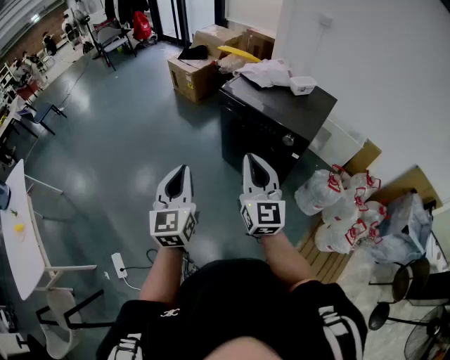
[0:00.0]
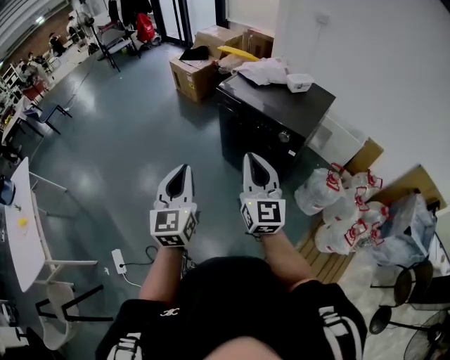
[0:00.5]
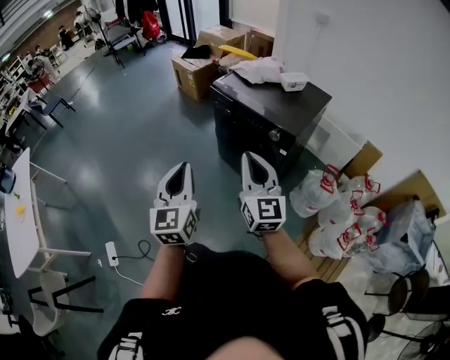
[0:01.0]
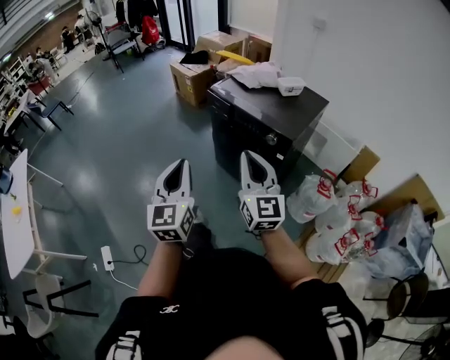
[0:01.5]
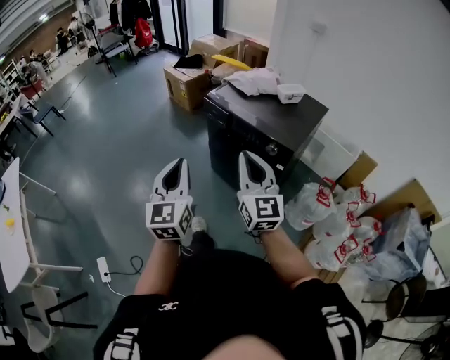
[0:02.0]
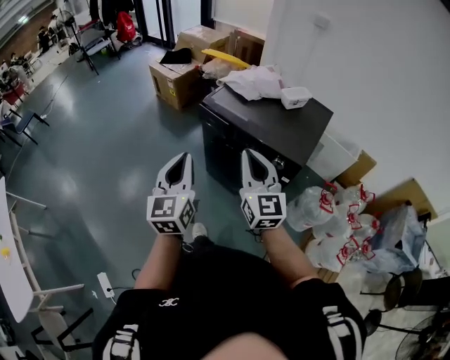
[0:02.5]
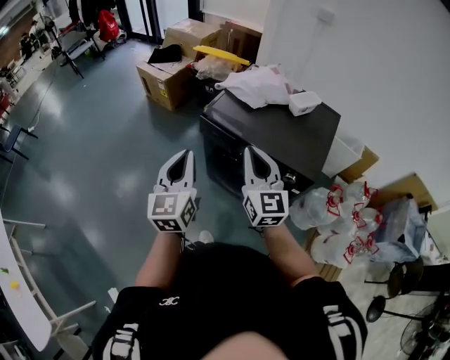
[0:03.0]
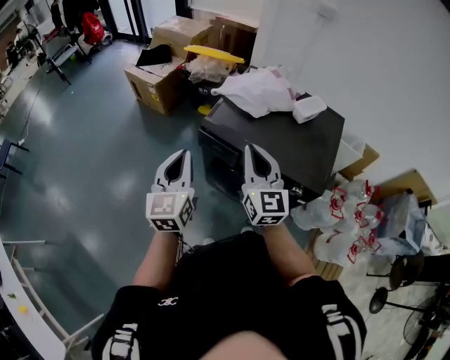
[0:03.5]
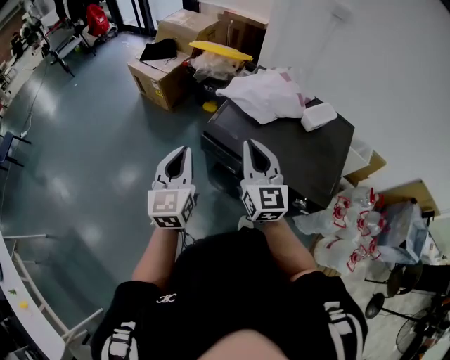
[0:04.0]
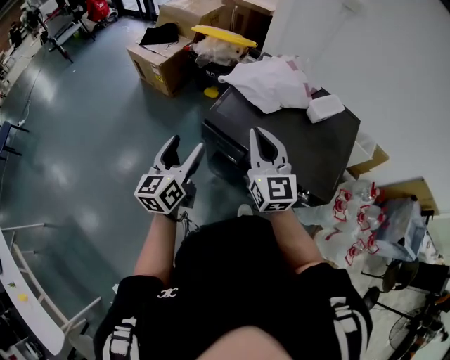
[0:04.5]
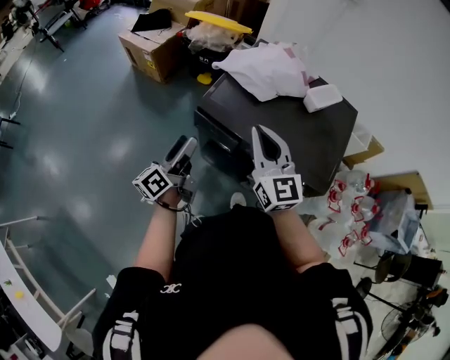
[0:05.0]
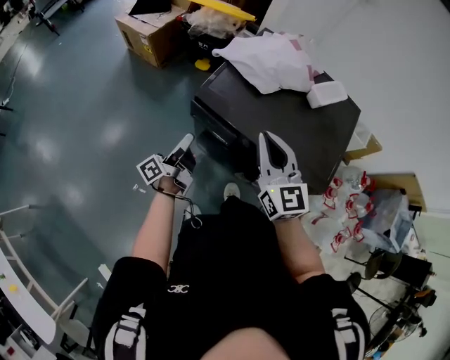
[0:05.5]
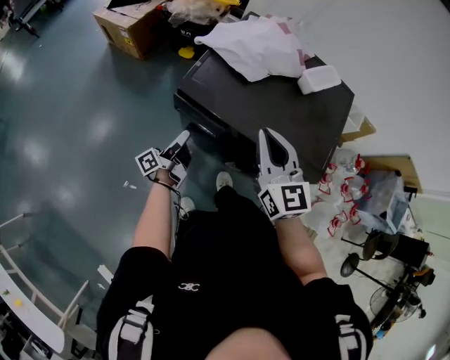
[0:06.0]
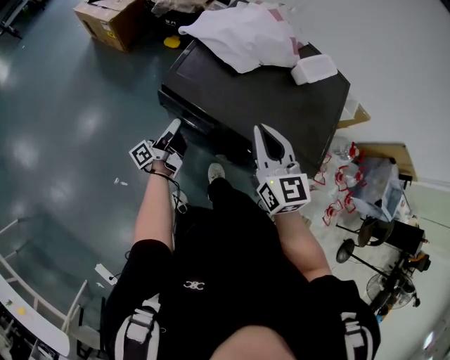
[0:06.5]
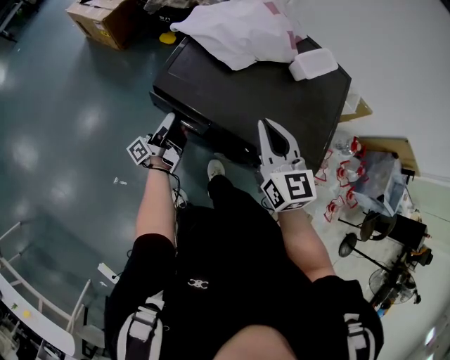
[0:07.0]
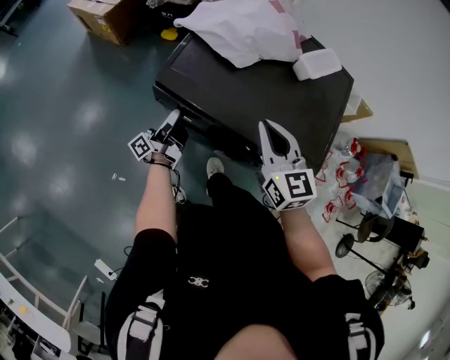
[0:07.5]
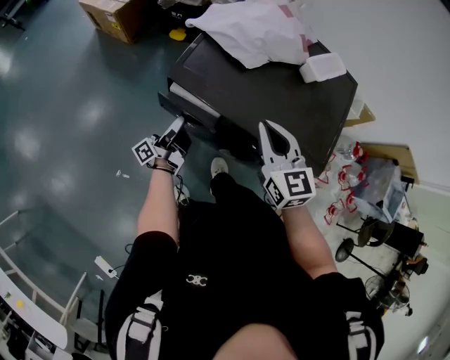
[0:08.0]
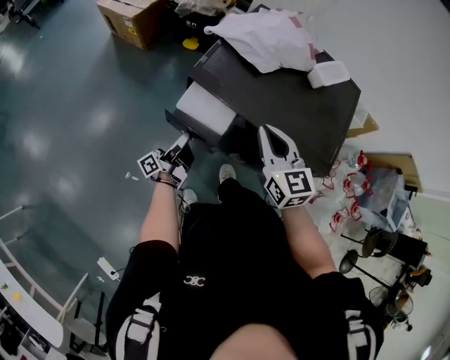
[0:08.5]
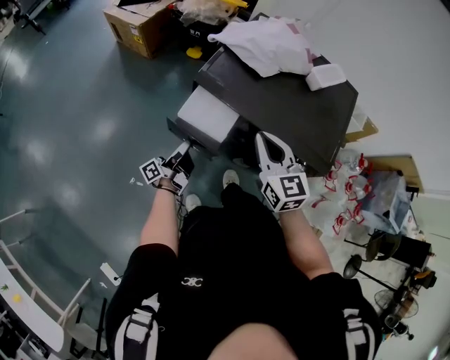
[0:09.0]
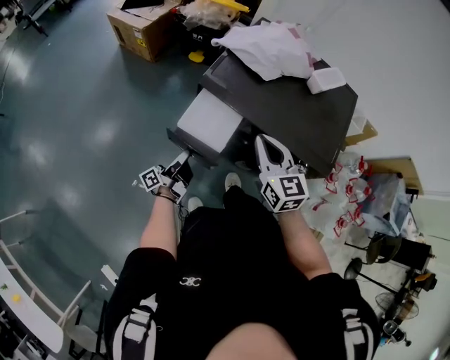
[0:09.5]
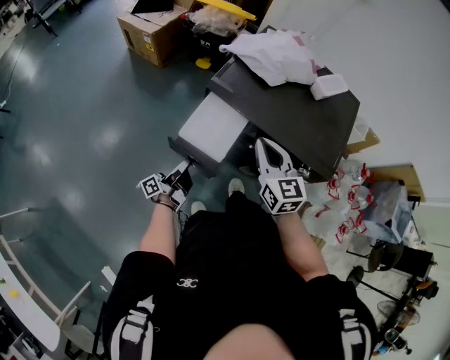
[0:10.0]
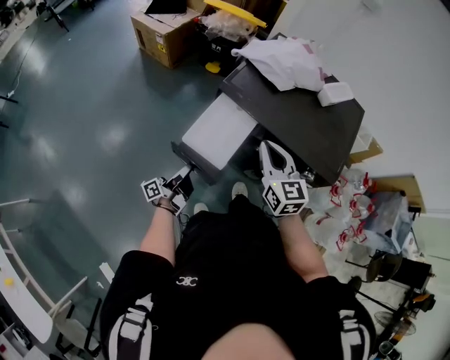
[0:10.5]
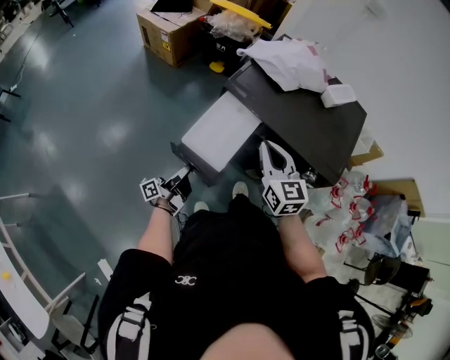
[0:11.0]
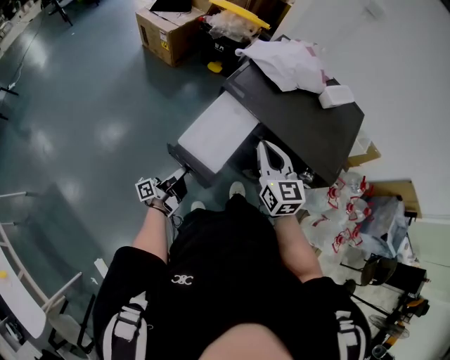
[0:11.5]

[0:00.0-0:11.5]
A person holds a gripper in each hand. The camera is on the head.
0:00.0 to 0:02.0: Both grippers travel together to the right, roughly 10 cm.
0:02.0 to 0:04.0: The two grippers travel together, forward, some 50 cm.
0:04.0 to 0:06.0: The right gripper heads to the right and downward, covering some 10 cm; the left gripper is displaced downward by roughly 30 cm, rotates around the line of its fingers by roughly 80 degrees, counterclockwise from behind, and opens its fingers.
0:06.0 to 0:07.5: The right gripper moves downward, some 5 cm. The left gripper goes approximately 5 cm forward.
0:07.5 to 0:09.5: The right gripper shifts roughly 10 cm backward and to the left, while the left gripper shifts roughly 20 cm backward and to the left.
0:09.5 to 0:11.5: The right gripper changes place by approximately 5 cm, while the left gripper moves backward, some 10 cm.

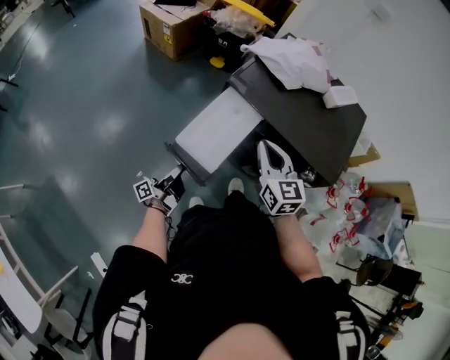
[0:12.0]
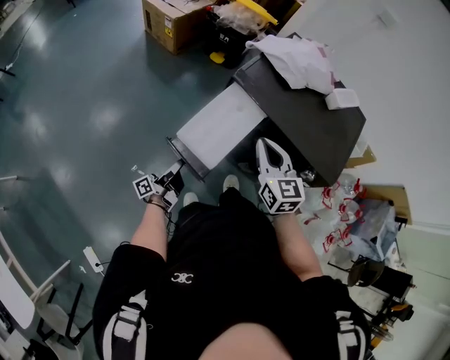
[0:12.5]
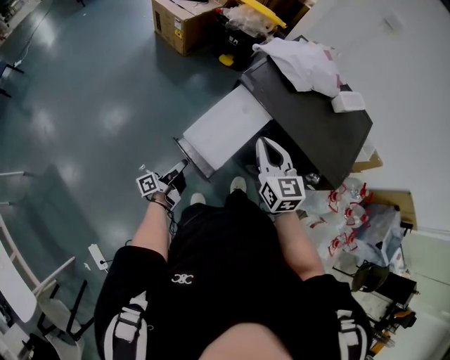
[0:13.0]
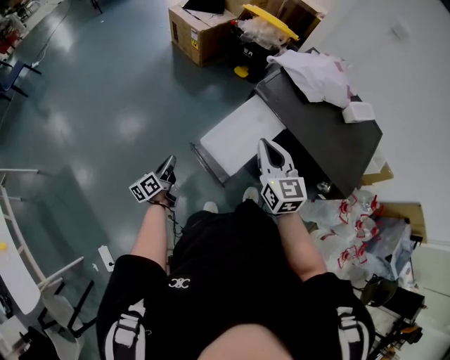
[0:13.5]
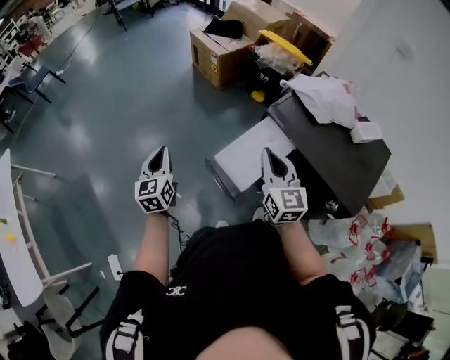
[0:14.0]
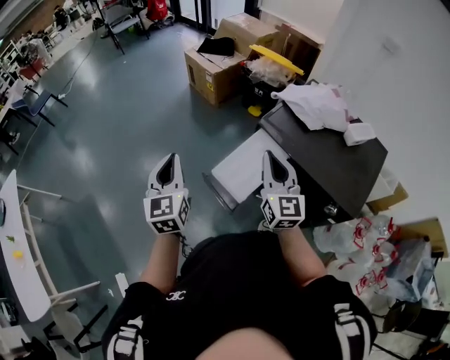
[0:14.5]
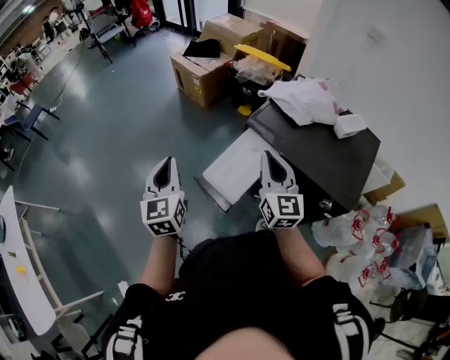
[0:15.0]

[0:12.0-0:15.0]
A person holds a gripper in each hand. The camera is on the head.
0:12.0 to 0:13.5: The left gripper heads to the left, covering roughly 10 cm, swivels some 50 degrees, and closes. The right gripper moves to the left, roughly 10 cm.
0:13.5 to 0:15.0: The right gripper heads upward, covering some 10 cm; the left gripper travels upward by roughly 30 cm, and rolls clockwise, seen from behind, by some 50 degrees.

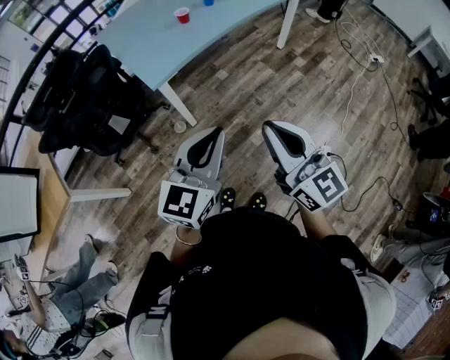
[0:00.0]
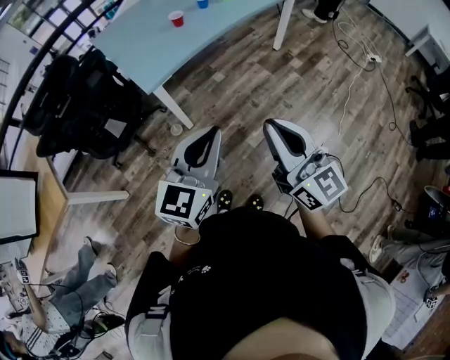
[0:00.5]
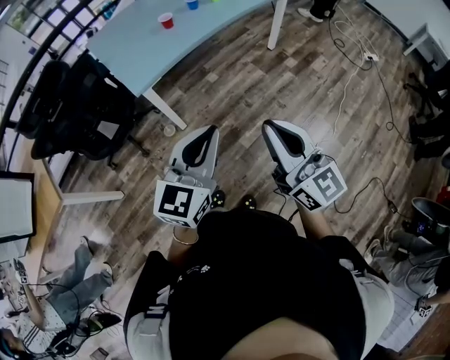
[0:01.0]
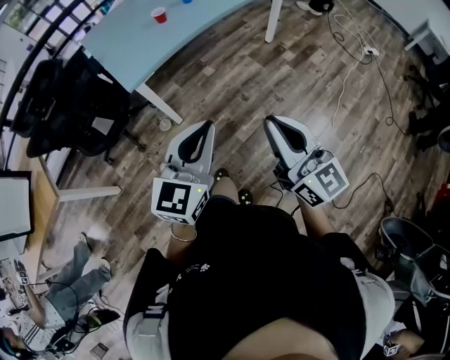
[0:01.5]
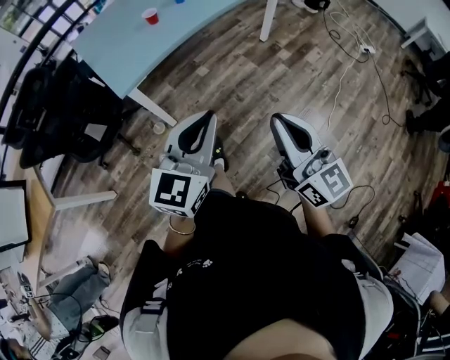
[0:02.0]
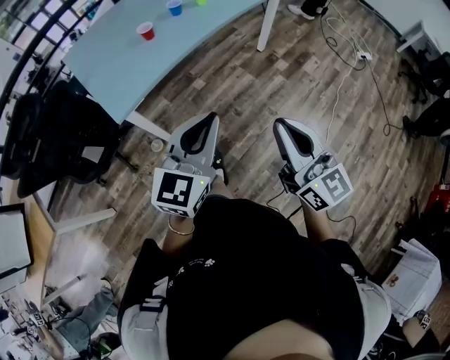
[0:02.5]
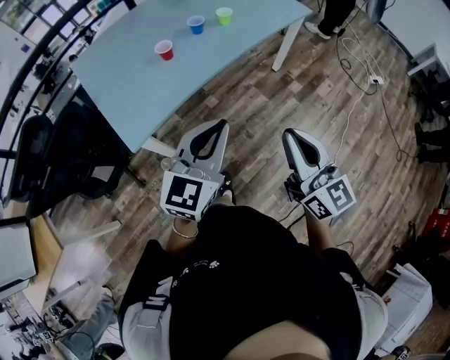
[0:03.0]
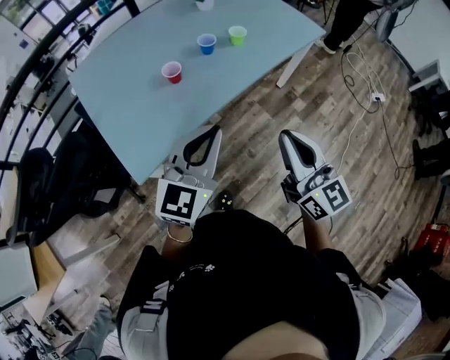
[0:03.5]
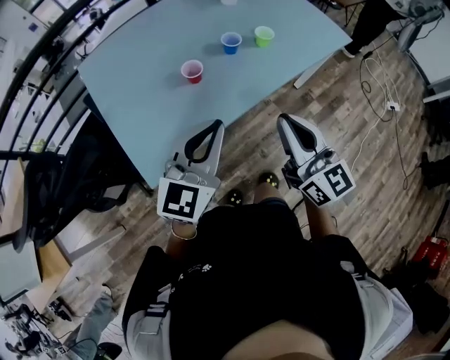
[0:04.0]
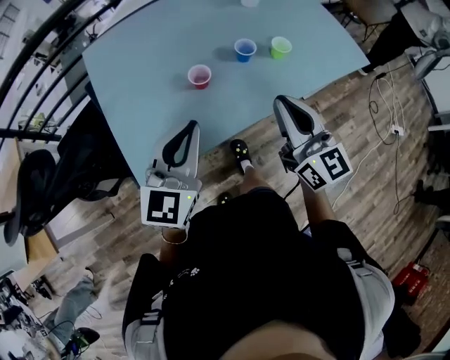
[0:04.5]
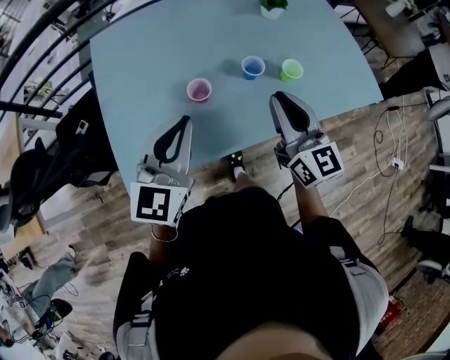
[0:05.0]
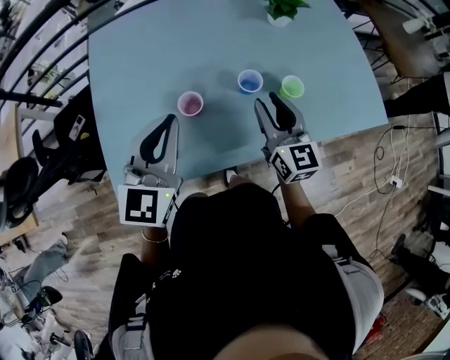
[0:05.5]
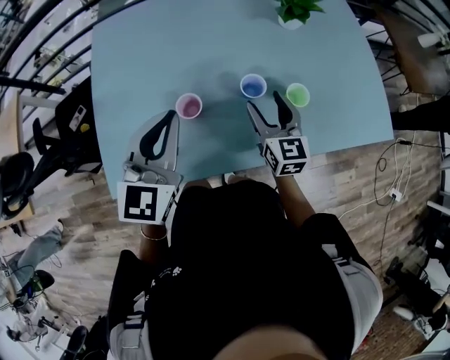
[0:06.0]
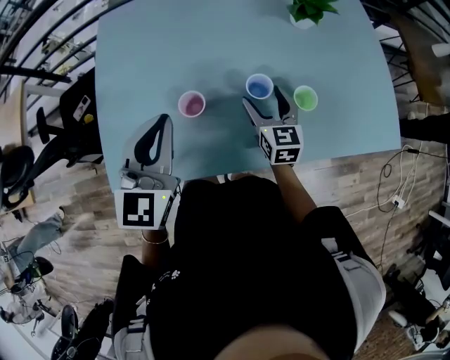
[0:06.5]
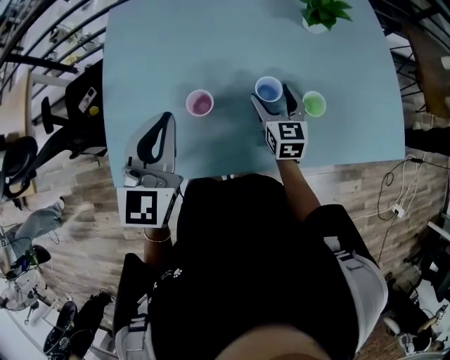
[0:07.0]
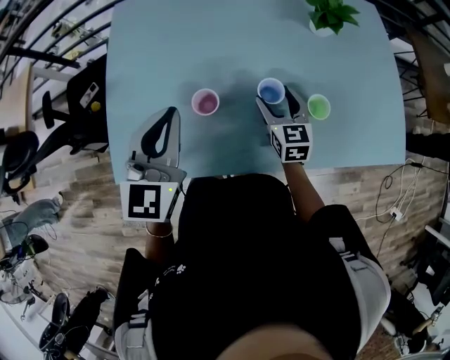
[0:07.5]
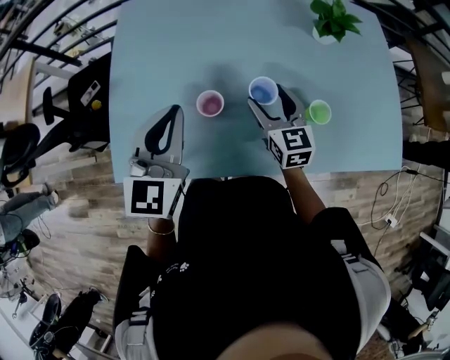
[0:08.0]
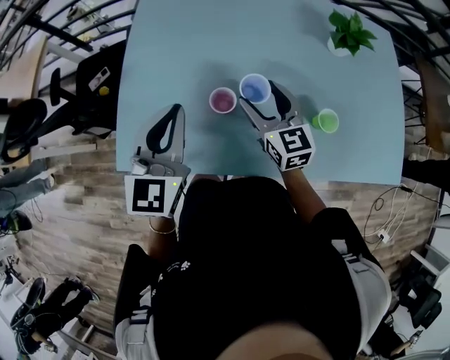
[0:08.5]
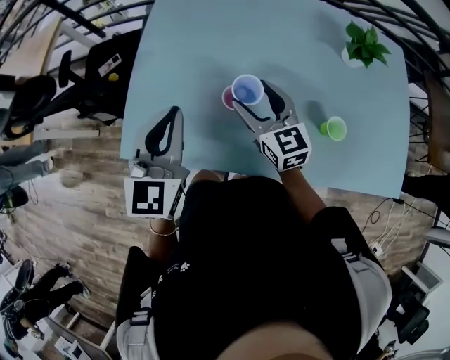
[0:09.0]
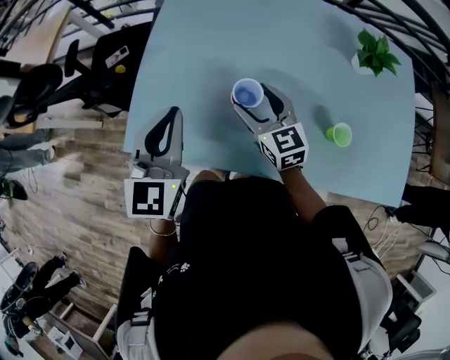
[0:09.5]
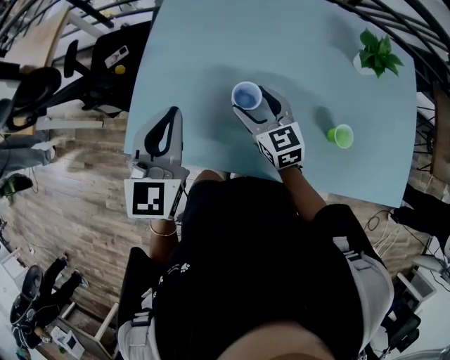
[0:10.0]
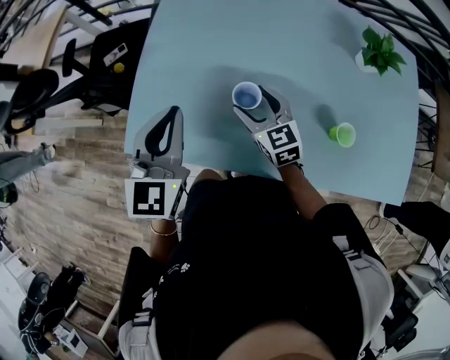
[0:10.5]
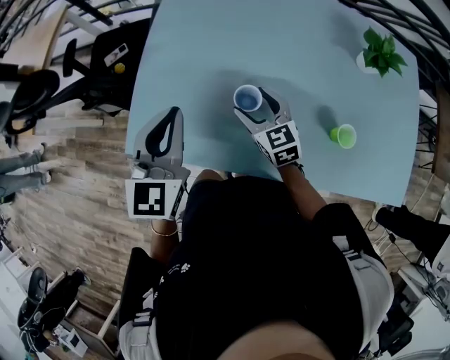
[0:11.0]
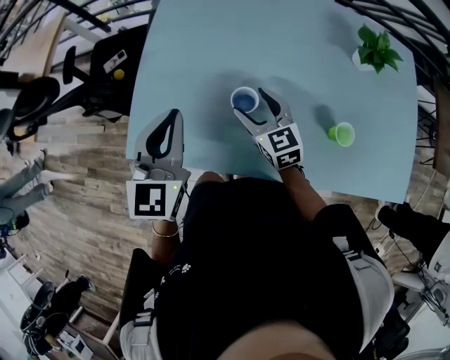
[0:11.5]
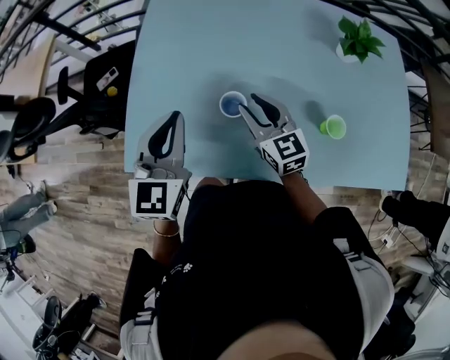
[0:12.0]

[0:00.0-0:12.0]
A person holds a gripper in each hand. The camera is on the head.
0:00.0 to 0:02.0: The left gripper moves to the right and forward, roughly 10 cm. Meanwhile the right gripper travels to the right by about 15 cm.
0:02.0 to 0:04.0: Both grippers are carried forward, about 50 cm.
0:04.0 to 0:06.0: The left gripper goes approximately 25 cm forward, and rotates approximately 30 degrees, while the right gripper is displaced forward and downward by about 40 cm, changes its angle by about 20 degrees, and opens.
0:06.0 to 0:08.0: The right gripper is displaced to the left by about 5 cm.
0:08.0 to 0:10.0: The right gripper heads to the left, covering about 15 cm, and changes its angle by some 20 degrees. The left gripper heads to the left, covering some 10 cm.
0:10.0 to 0:12.0: The right gripper closes its fingers.
